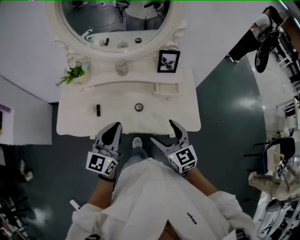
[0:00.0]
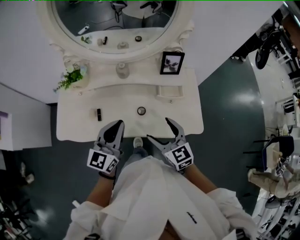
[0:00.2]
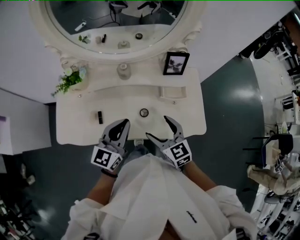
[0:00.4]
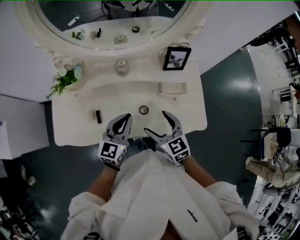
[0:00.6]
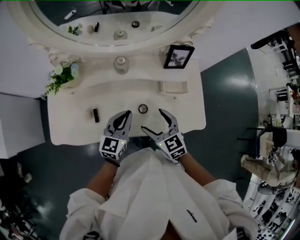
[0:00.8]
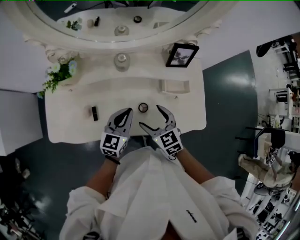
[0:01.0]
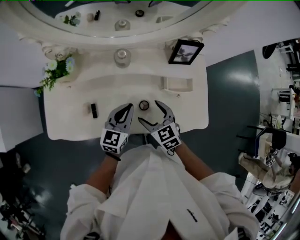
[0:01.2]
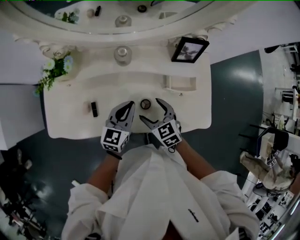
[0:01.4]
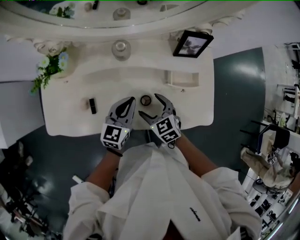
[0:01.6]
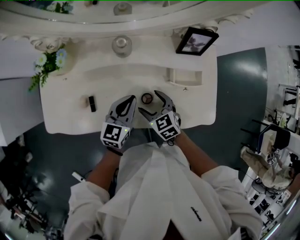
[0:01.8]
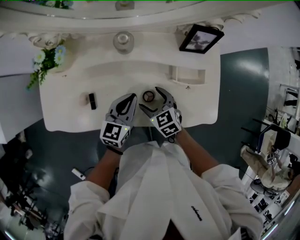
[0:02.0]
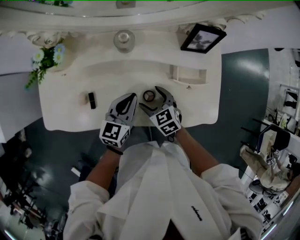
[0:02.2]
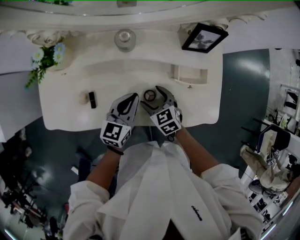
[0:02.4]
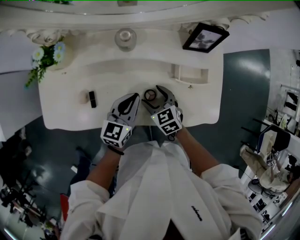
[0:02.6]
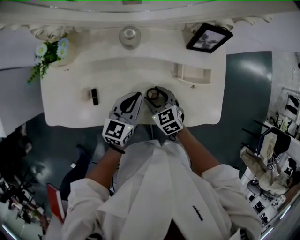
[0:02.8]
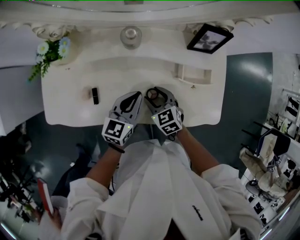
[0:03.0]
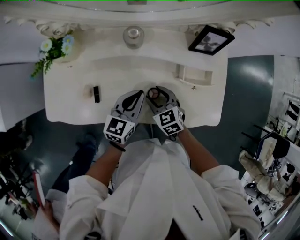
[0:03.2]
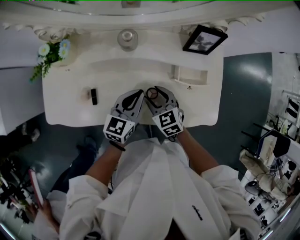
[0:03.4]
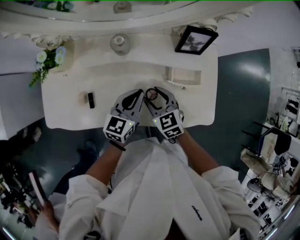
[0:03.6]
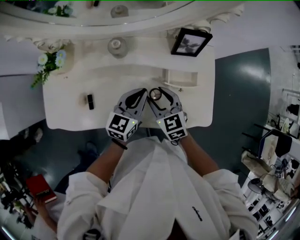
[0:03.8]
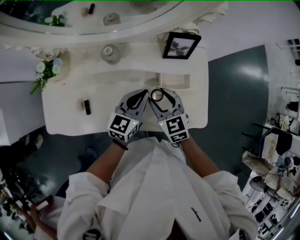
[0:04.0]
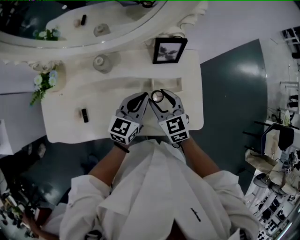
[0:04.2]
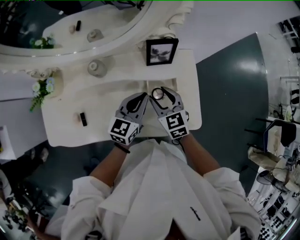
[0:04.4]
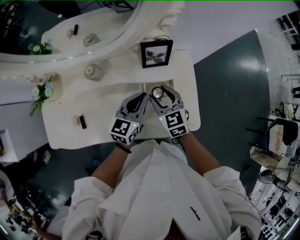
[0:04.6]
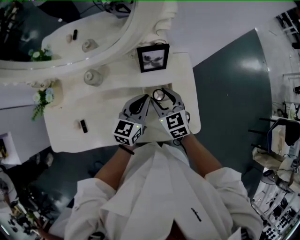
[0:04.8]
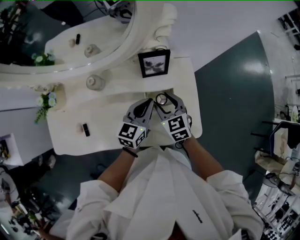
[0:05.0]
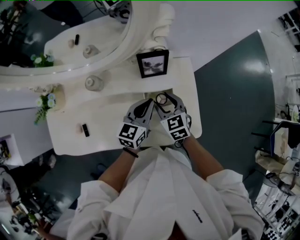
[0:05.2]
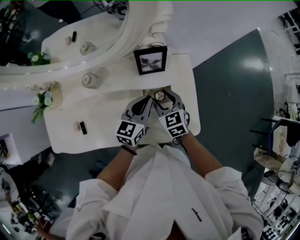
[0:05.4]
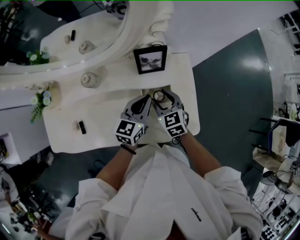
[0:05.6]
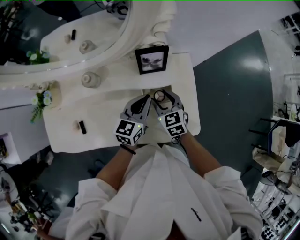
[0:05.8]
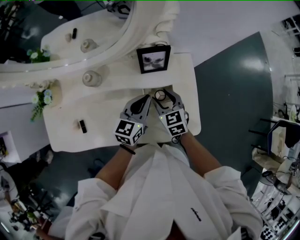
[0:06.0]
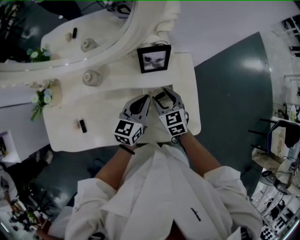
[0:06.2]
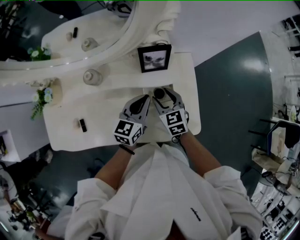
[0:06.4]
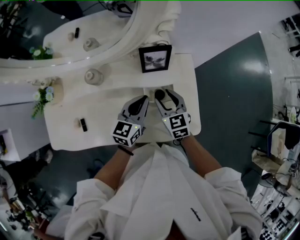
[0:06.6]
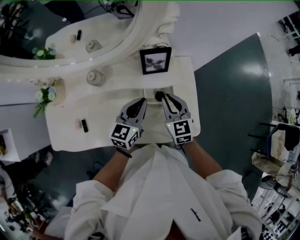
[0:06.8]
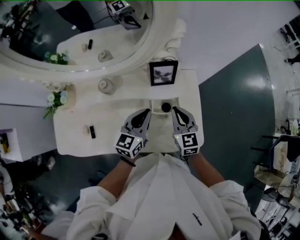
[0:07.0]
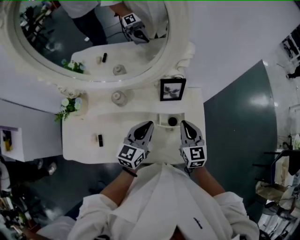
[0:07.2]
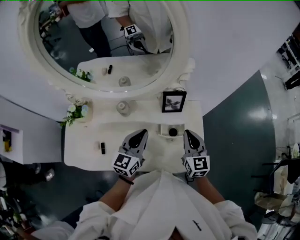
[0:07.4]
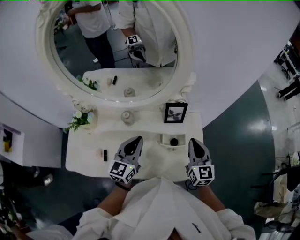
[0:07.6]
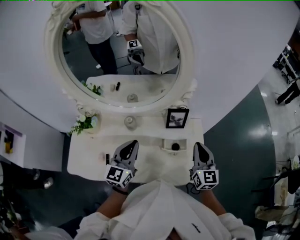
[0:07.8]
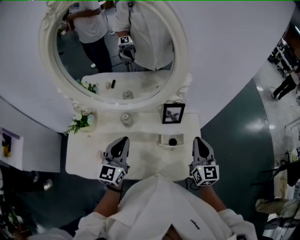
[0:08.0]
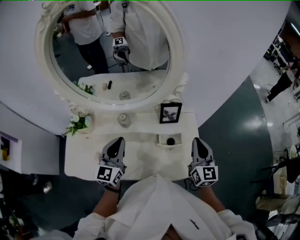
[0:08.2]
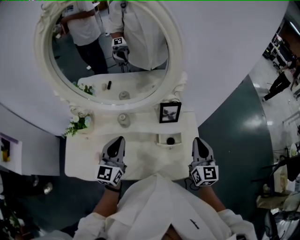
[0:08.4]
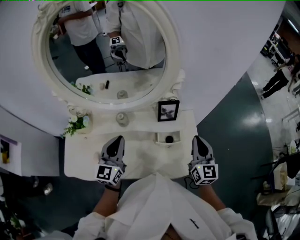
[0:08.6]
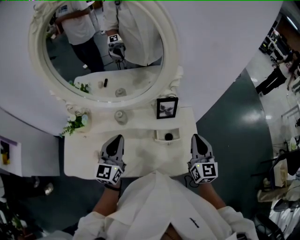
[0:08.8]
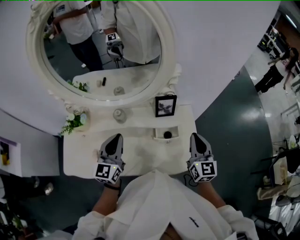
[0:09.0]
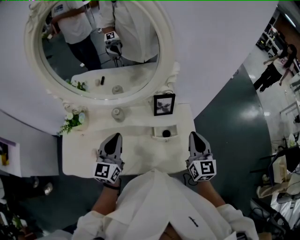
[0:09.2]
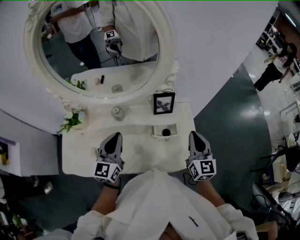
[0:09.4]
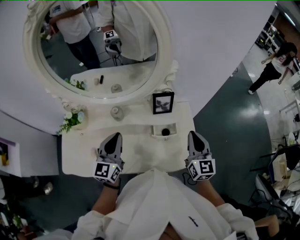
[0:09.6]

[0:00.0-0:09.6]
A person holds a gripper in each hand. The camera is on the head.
0:00.0 to 0:01.6: Both grippers travel together downward and forward, approximately 25 cm. The left gripper rotates about 20 degrees; the right gripper turns by approximately 30 degrees.
0:01.6 to 0:03.2: The right gripper closes up.
0:03.2 to 0:04.8: The left gripper heads to the right and forward, covering approximately 20 cm; the right gripper moves to the right, upward and forward, about 25 cm.
0:04.8 to 0:06.4: The grippers stay close to where they were, moving slightly.
0:06.4 to 0:08.0: The right gripper travels upward by some 25 cm, angles its fingers upward, by about 30 degrees, and closes, while the left gripper shifts roughly 25 cm to the left and upward, and turns by about 30 degrees.
0:08.0 to 0:09.6: The grippers move only a little.

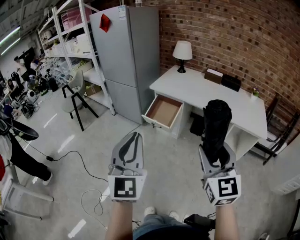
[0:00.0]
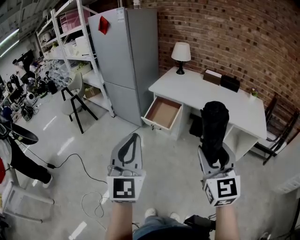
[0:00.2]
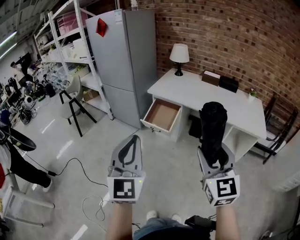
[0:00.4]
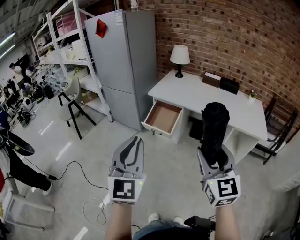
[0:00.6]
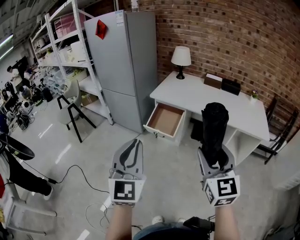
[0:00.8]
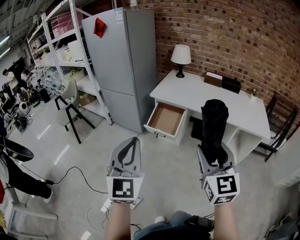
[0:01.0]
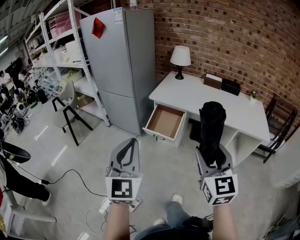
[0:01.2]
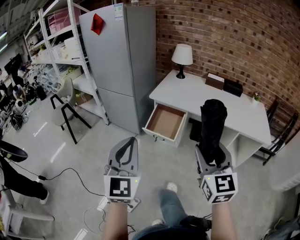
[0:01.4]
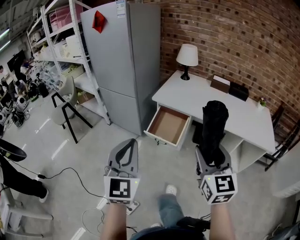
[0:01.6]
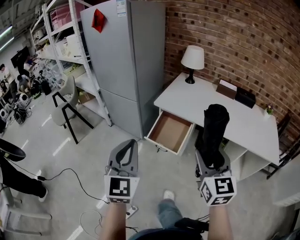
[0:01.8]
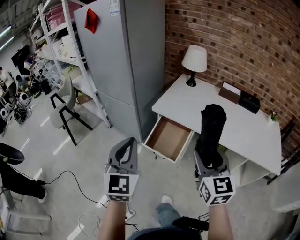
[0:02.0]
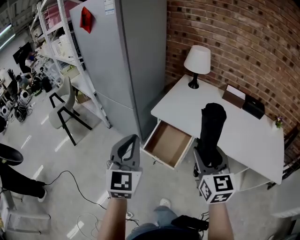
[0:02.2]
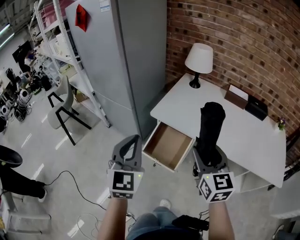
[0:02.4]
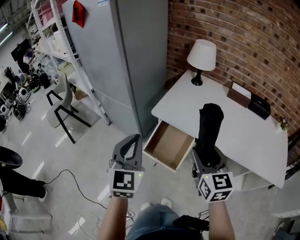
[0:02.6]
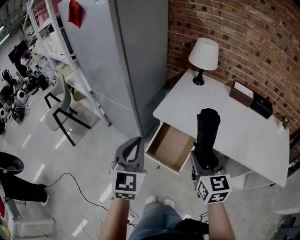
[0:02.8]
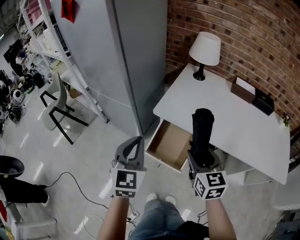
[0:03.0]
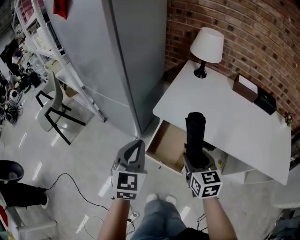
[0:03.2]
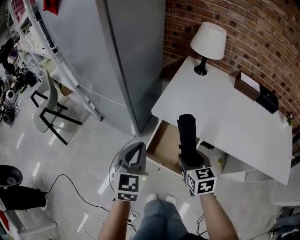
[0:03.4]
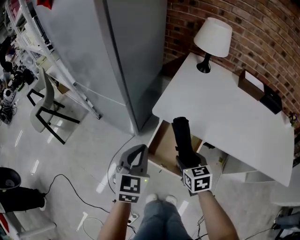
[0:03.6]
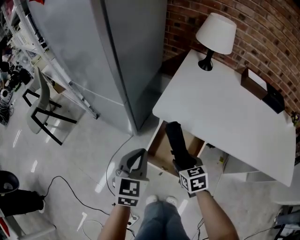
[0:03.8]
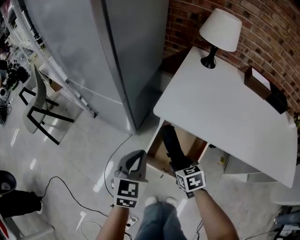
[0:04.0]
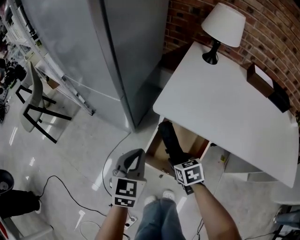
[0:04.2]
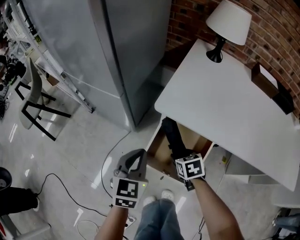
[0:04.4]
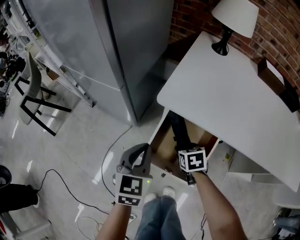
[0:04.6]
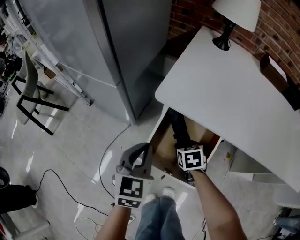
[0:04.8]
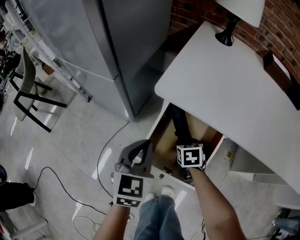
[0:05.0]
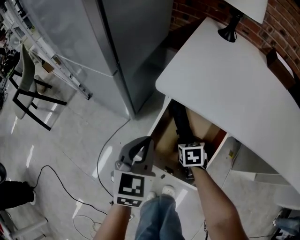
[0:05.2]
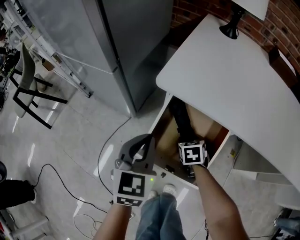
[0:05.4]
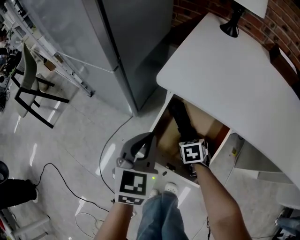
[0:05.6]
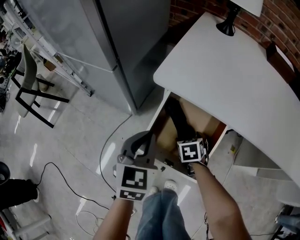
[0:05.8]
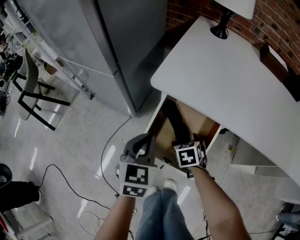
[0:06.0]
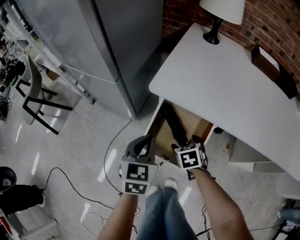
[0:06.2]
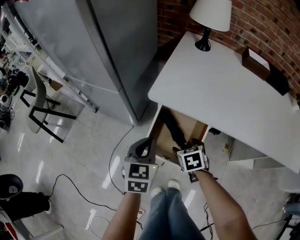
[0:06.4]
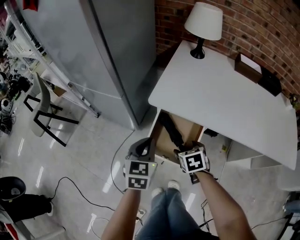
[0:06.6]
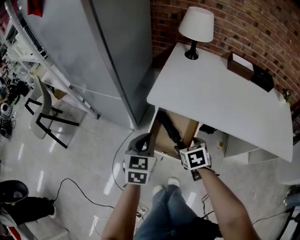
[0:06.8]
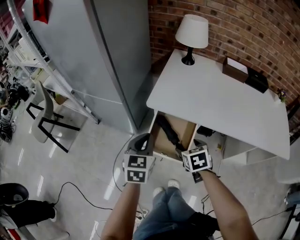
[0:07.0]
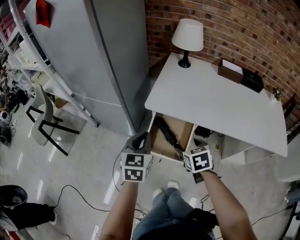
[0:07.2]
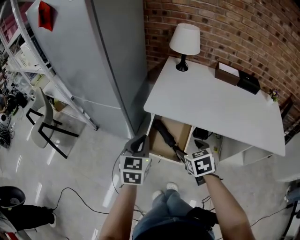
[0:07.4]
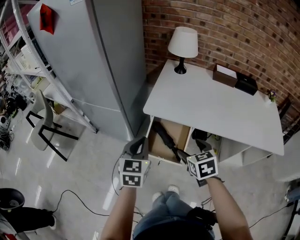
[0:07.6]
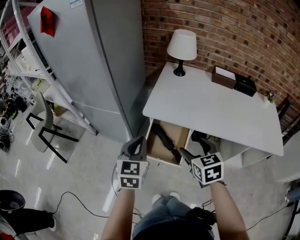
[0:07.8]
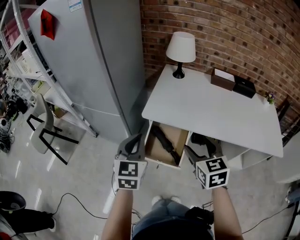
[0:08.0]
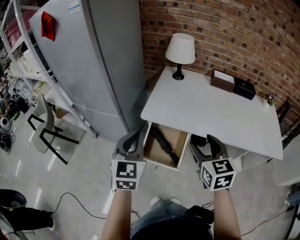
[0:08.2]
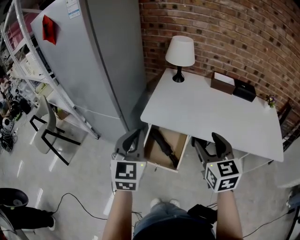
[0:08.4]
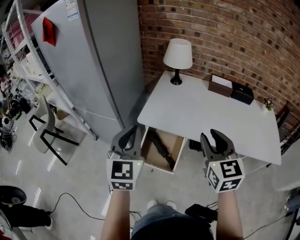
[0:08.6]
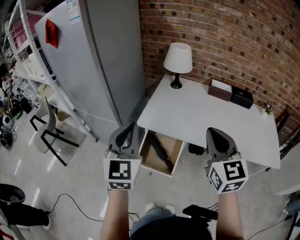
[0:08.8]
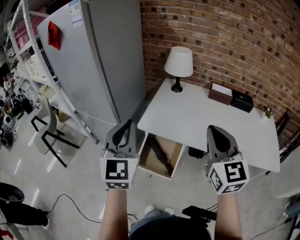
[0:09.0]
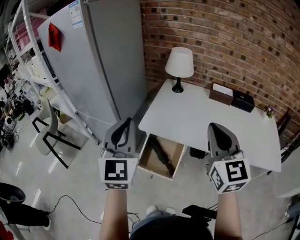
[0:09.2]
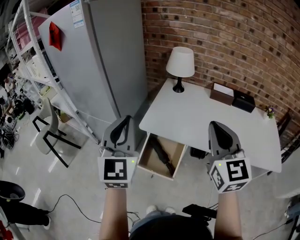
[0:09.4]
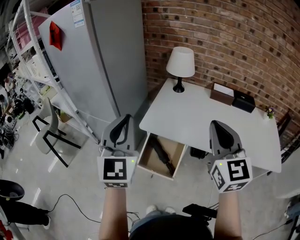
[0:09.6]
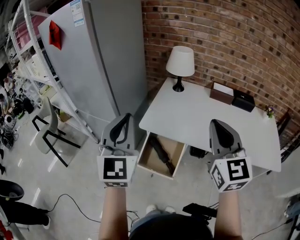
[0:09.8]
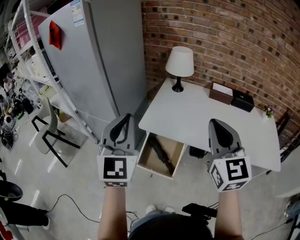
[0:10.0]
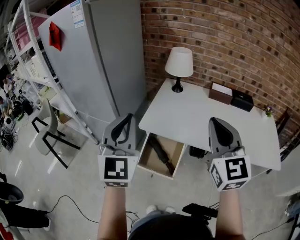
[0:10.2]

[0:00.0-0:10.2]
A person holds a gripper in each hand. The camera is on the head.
0:00.0 to 0:01.4: The grippers both shift forward and to the left by about 15 cm.
0:01.4 to 0:03.0: The two grippers go approximately 40 cm forward. The right gripper swivels about 20 degrees.
0:03.0 to 0:04.4: The right gripper moves downward, approximately 35 cm, and tilts its fingers roughly 40 degrees downward. The left gripper travels downward and forward by roughly 25 cm.
0:04.4 to 0:05.8: The left gripper is displaced downward by roughly 5 cm. Meanwhile the right gripper moves downward, about 15 cm, and opens up.
0:05.8 to 0:07.2: The right gripper is displaced upward by approximately 35 cm; the left gripper goes about 20 cm upward.
0:07.2 to 0:08.8: Both grippers travel together upward, roughly 25 cm. The left gripper rotates roughly 30 degrees. Meanwhile the right gripper tilts its fingers about 40 degrees upward, and closes its fingers.
0:08.8 to 0:10.2: Both grippers travel together upward, roughly 5 cm.

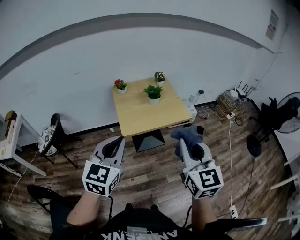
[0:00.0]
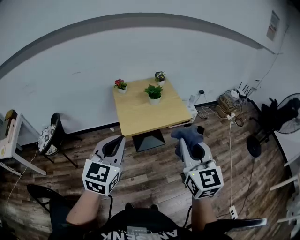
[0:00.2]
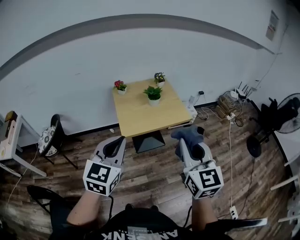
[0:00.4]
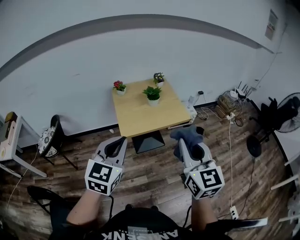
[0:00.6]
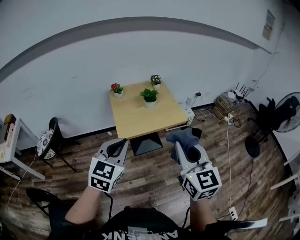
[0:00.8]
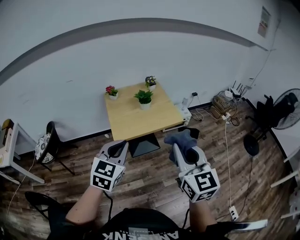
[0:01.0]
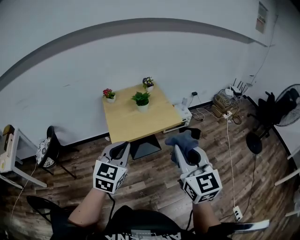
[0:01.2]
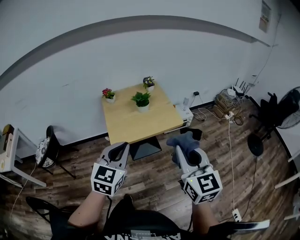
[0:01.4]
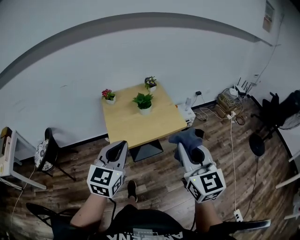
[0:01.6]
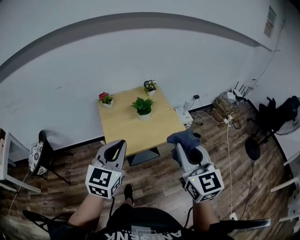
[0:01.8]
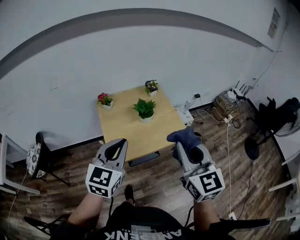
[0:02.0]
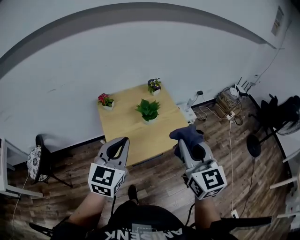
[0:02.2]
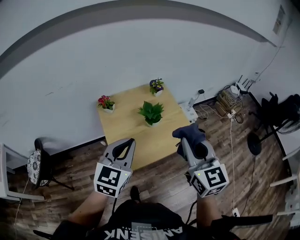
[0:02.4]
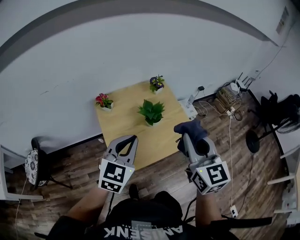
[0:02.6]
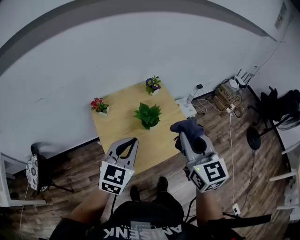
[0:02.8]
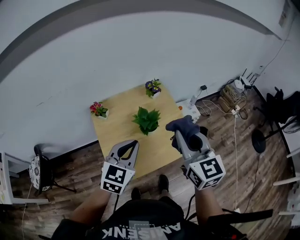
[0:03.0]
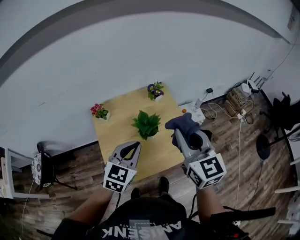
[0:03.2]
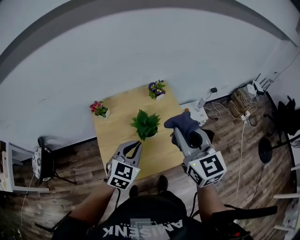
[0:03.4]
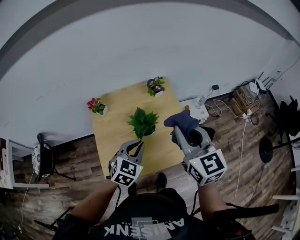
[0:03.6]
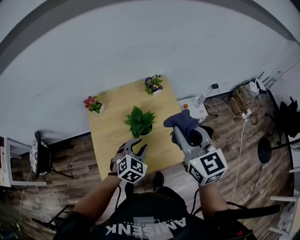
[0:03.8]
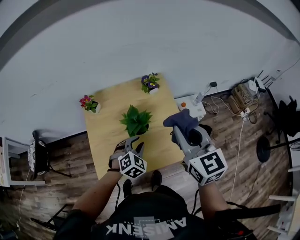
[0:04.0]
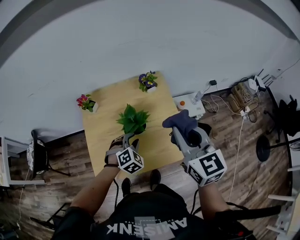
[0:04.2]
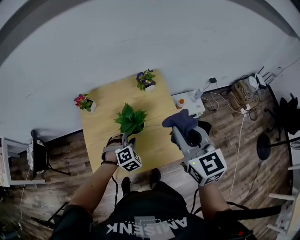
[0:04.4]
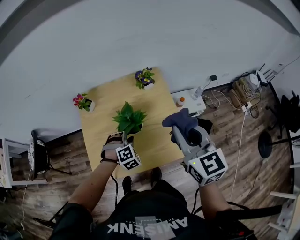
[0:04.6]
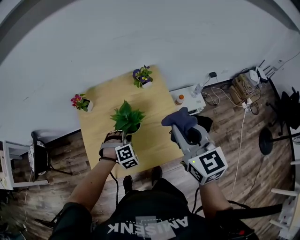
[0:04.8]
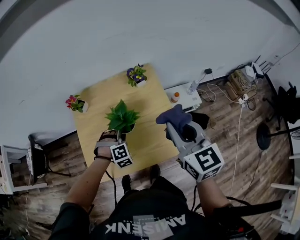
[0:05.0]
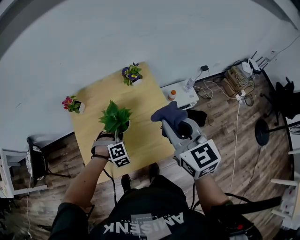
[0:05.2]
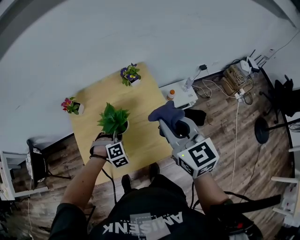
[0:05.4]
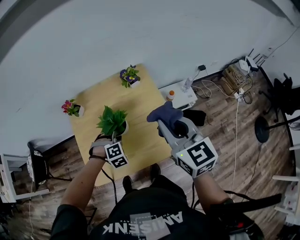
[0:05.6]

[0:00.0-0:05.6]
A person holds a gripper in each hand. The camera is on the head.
0:00.0 to 0:01.4: The left gripper travels to the right and forward by roughly 15 cm, while the right gripper is displaced to the right by approximately 10 cm.
0:01.4 to 0:02.8: Both grippers travel together forward, about 35 cm.
0:02.8 to 0:04.2: The right gripper shifts approximately 20 cm forward, to the right and downward. The left gripper moves downward, forward and to the right, about 30 cm, tips its fingers downward by about 30 degrees, and opens.
0:04.2 to 0:05.6: The left gripper changes place by roughly 5 cm, and turns by some 30 degrees.
